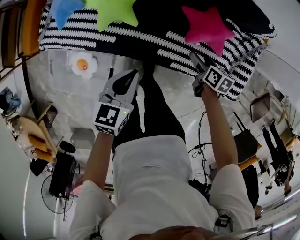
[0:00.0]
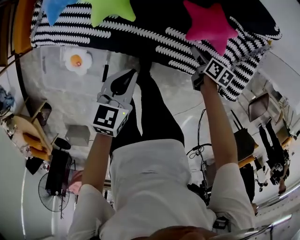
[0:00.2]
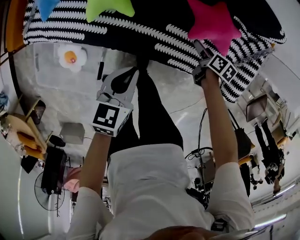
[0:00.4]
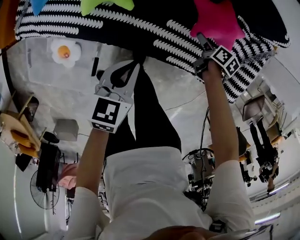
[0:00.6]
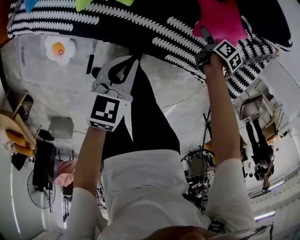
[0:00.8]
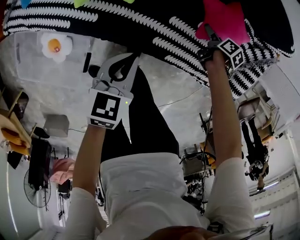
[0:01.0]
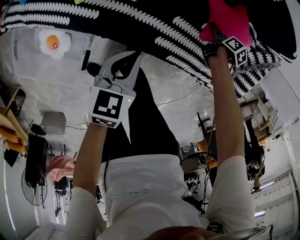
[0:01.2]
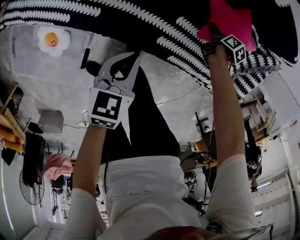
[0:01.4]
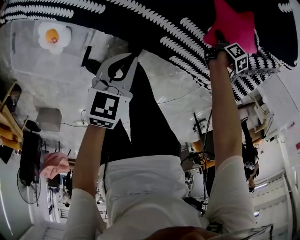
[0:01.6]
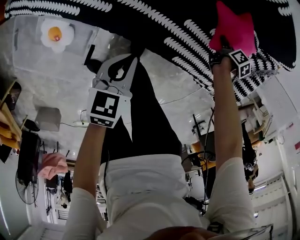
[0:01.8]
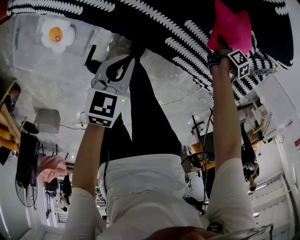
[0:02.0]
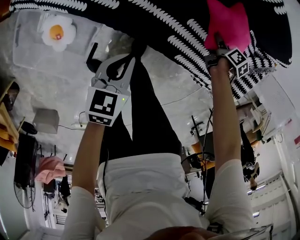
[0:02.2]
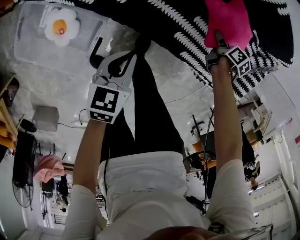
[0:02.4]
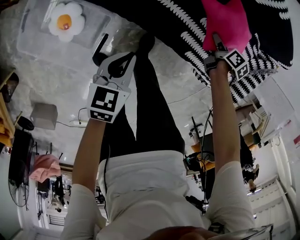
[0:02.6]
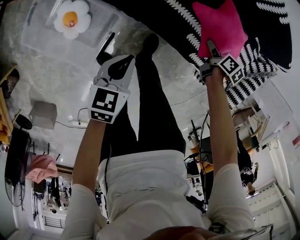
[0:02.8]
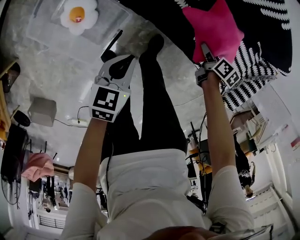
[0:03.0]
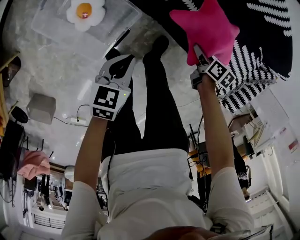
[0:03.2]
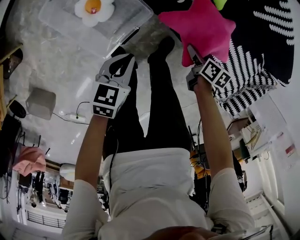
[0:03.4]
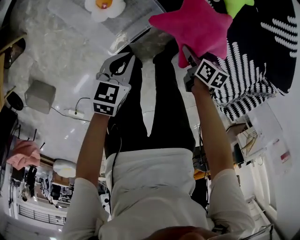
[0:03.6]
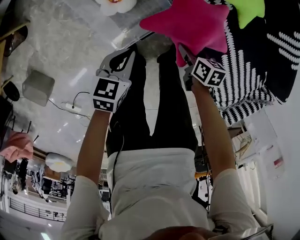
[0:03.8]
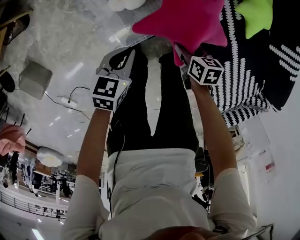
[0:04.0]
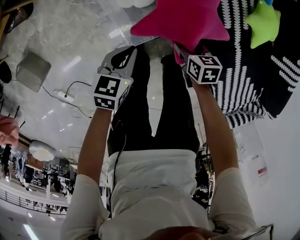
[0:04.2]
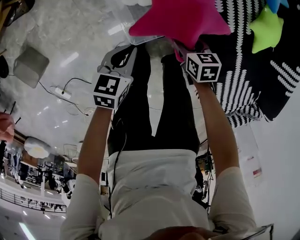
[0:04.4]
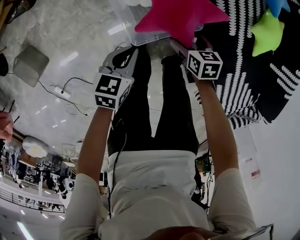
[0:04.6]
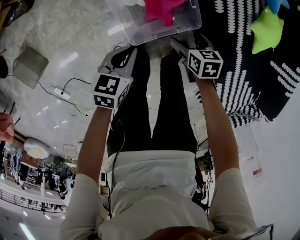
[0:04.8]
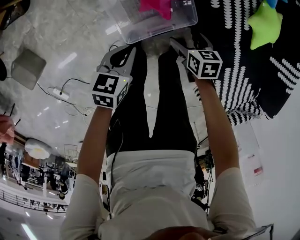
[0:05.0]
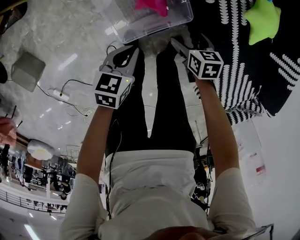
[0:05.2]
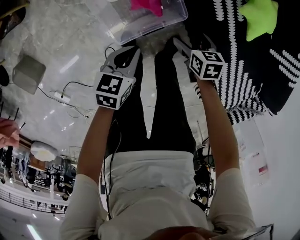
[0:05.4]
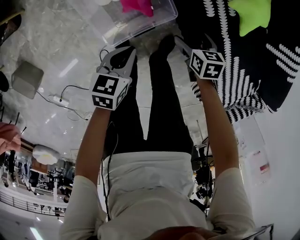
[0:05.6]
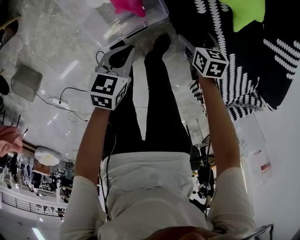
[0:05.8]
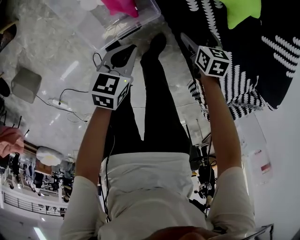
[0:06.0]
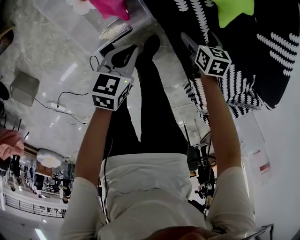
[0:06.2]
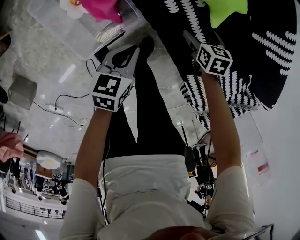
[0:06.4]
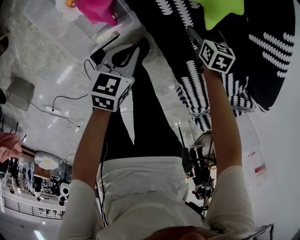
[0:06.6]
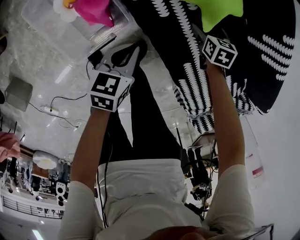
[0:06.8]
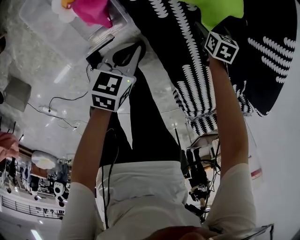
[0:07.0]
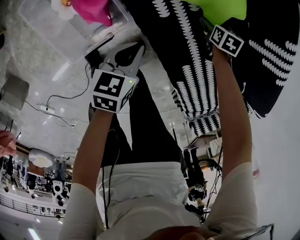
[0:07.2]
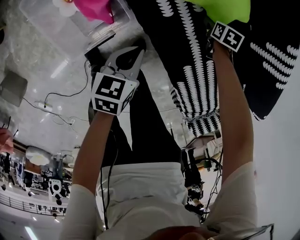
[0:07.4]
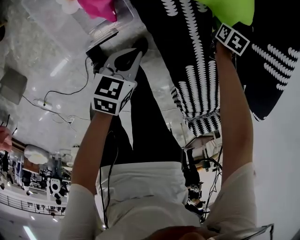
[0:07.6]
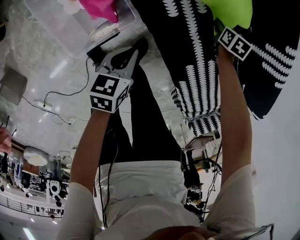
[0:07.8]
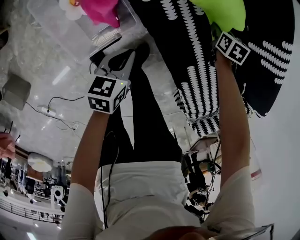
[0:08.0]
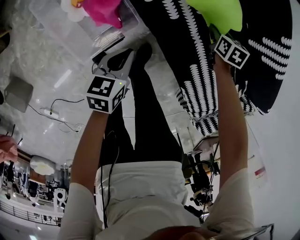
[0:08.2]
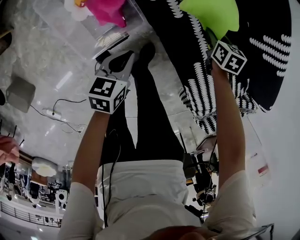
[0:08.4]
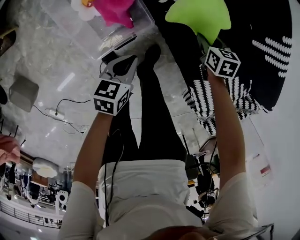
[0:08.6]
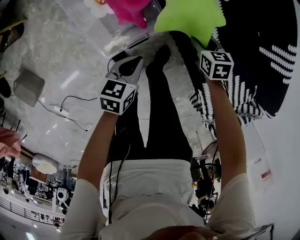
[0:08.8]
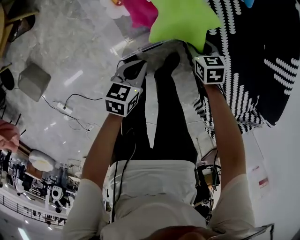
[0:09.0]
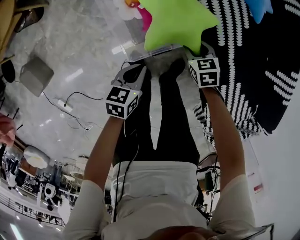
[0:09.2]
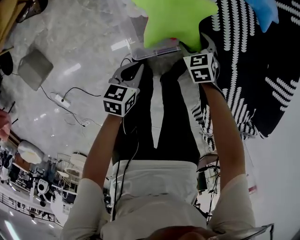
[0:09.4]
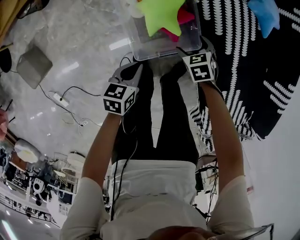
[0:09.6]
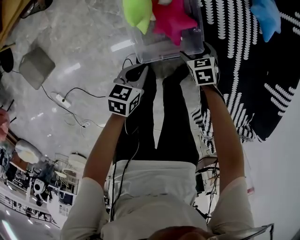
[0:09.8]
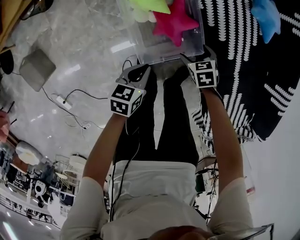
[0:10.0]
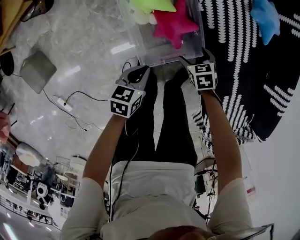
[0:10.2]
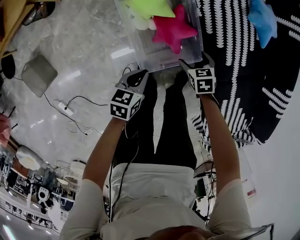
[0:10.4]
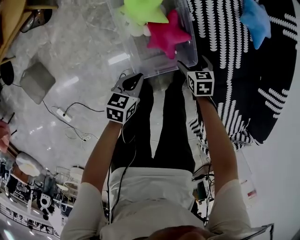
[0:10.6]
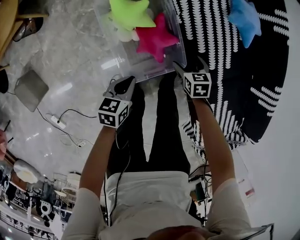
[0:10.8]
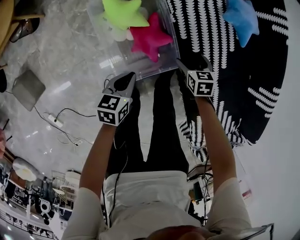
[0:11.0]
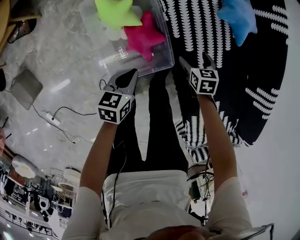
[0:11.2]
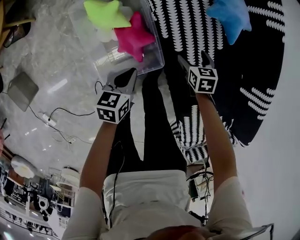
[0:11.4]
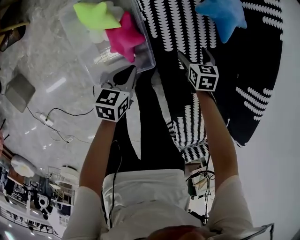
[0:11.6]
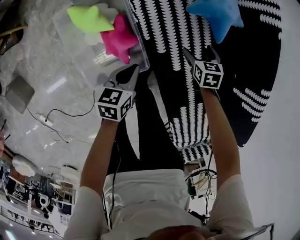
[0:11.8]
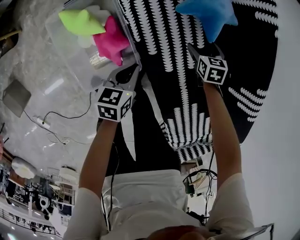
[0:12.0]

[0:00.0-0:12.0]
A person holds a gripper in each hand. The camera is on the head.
0:00.0 to 0:01.6: The two grippers go some 25 cm downward. The right gripper swivels some 30 degrees.
0:01.6 to 0:03.0: The right gripper changes place by some 30 cm, and swivels approximately 30 degrees, while the left gripper moves some 25 cm.
0:03.0 to 0:04.4: The left gripper ends up about 35 cm from where it was, and swivels approximately 30 degrees. The right gripper moves approximately 50 cm, and rolls counterclockwise, seen from behind, by some 70 degrees.
0:04.4 to 0:06.0: The two grippers go some 25 cm to the right. The right gripper opens up.
0:06.0 to 0:07.6: The left gripper moves some 15 cm. Meanwhile the right gripper moves approximately 25 cm, and closes up.
0:07.6 to 0:09.0: The left gripper changes place by roughly 25 cm. Meanwhile the right gripper ends up roughly 40 cm from where it was, and turns by about 30 degrees.
0:09.0 to 0:10.4: The grippers both shift to the left by approximately 15 cm. The right gripper opens its fingers.
0:10.4 to 0:12.0: The two grippers go some 40 cm to the right and forward.

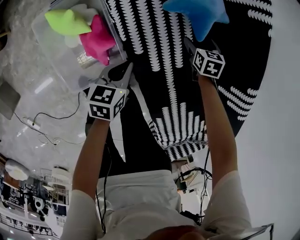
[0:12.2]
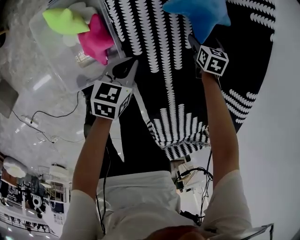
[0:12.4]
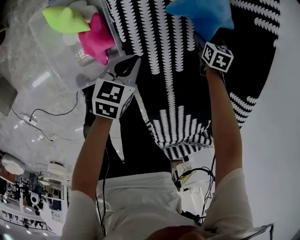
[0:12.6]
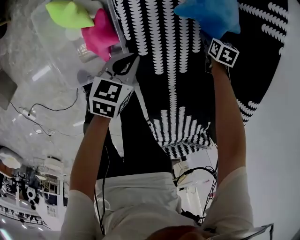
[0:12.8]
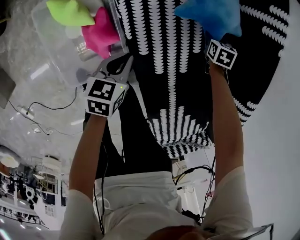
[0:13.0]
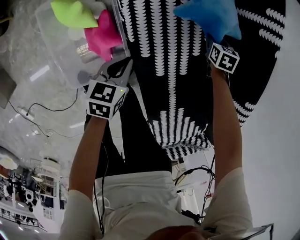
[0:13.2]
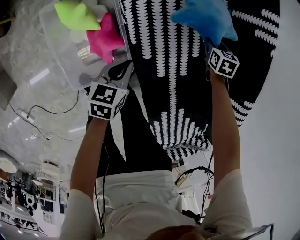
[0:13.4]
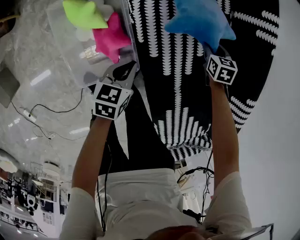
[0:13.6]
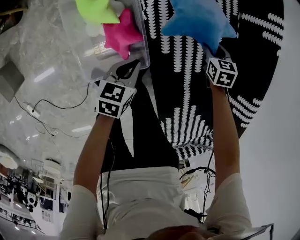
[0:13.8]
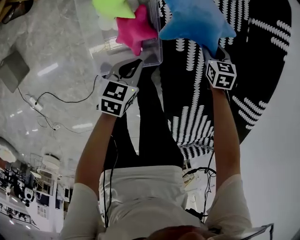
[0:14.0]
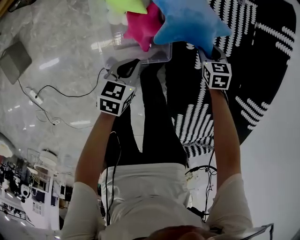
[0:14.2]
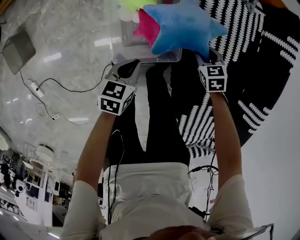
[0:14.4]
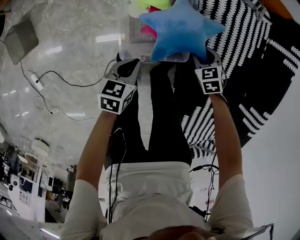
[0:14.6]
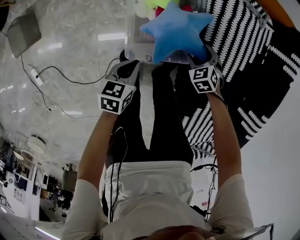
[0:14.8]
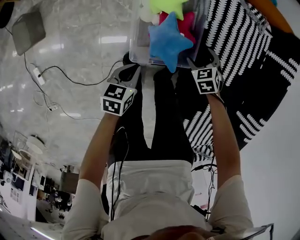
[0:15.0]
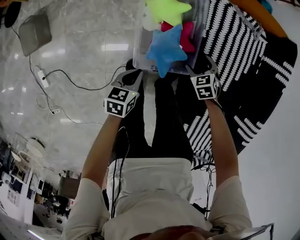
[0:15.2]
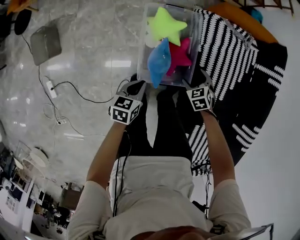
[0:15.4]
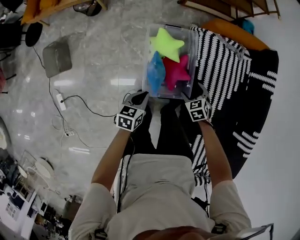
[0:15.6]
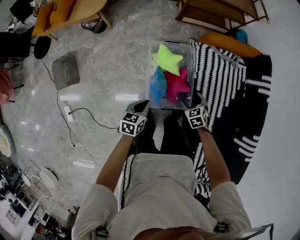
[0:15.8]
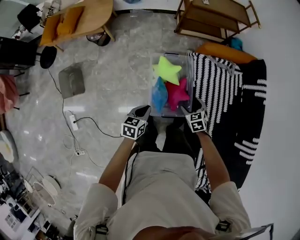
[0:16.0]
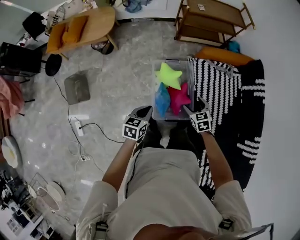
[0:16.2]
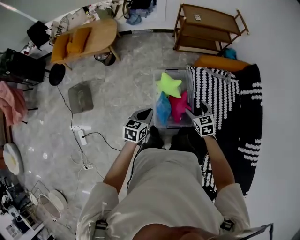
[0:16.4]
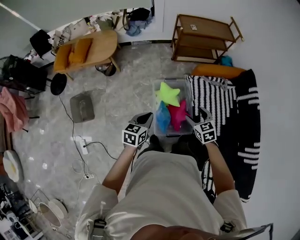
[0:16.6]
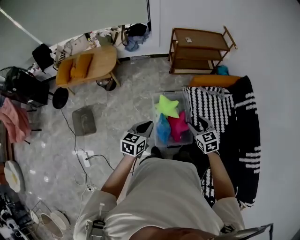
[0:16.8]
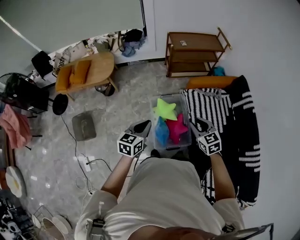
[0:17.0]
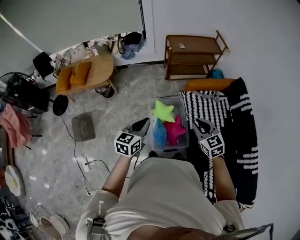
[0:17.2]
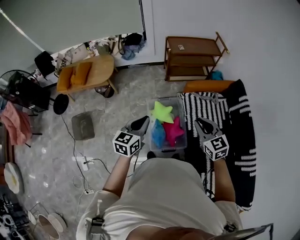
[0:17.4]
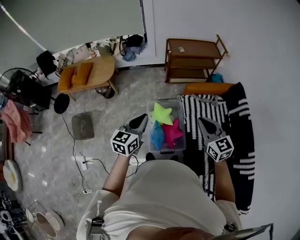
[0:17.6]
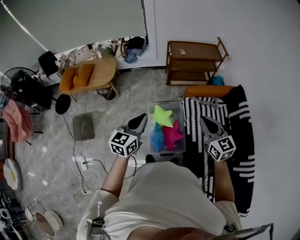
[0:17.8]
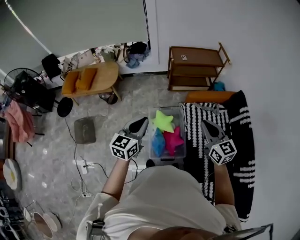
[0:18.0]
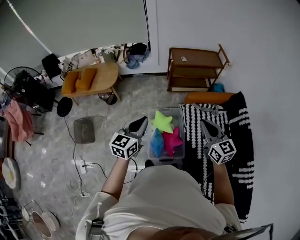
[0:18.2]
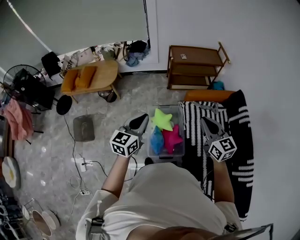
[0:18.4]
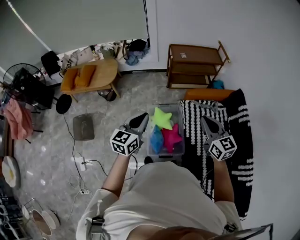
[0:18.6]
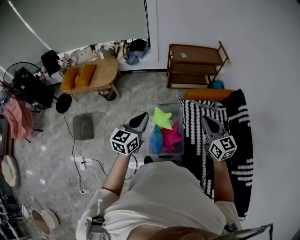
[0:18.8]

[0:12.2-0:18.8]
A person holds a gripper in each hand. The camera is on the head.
0:12.2 to 0:13.8: The left gripper shifts roughly 10 cm to the left and backward. Meanwhile the right gripper is displaced to the left by about 10 cm, and closes up.
0:13.8 to 0:15.4: The two grippers go some 40 cm to the left and backward. The right gripper changes its angle by roughly 40 degrees, and opens up.
0:15.4 to 0:17.2: Both grippers move upward, about 50 cm. The left gripper turns by some 30 degrees. Meanwhile the right gripper angles its fingers upward, by about 40 degrees, and closes.
0:17.2 to 0:18.8: The left gripper is displaced upward by some 10 cm, while the right gripper heads upward and to the right, covering roughly 15 cm, and changes its angle by roughly 20 degrees.

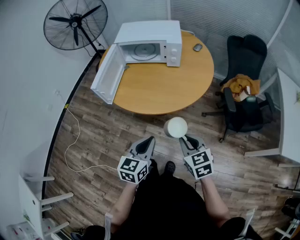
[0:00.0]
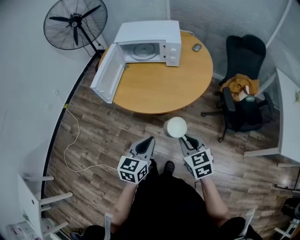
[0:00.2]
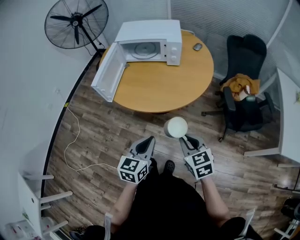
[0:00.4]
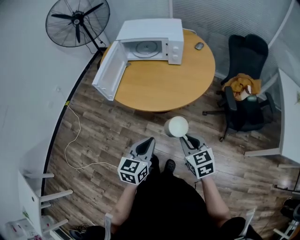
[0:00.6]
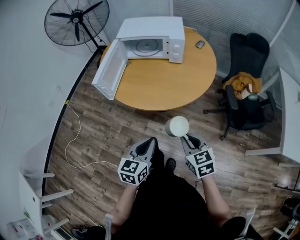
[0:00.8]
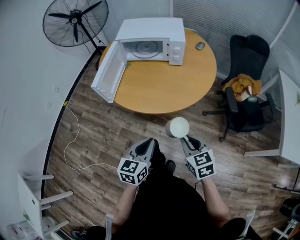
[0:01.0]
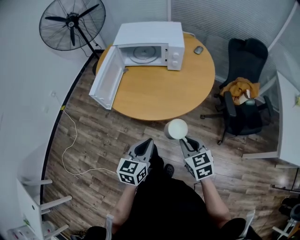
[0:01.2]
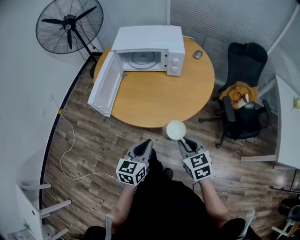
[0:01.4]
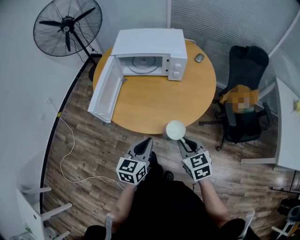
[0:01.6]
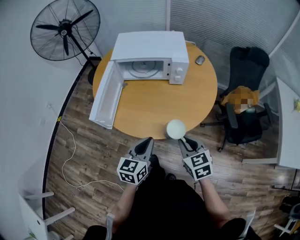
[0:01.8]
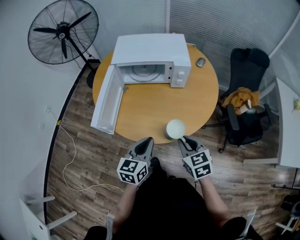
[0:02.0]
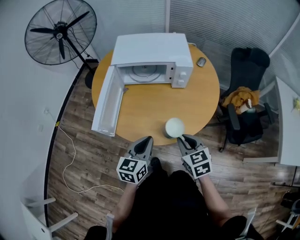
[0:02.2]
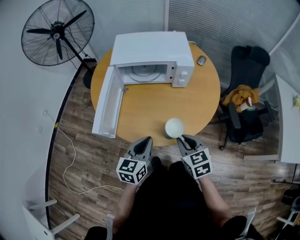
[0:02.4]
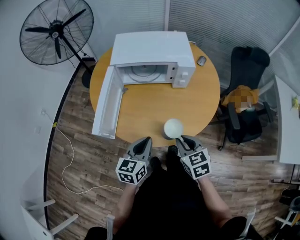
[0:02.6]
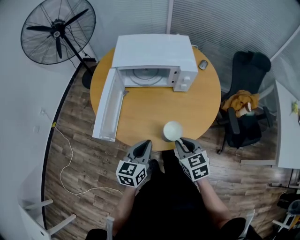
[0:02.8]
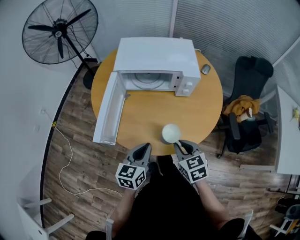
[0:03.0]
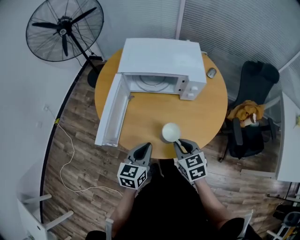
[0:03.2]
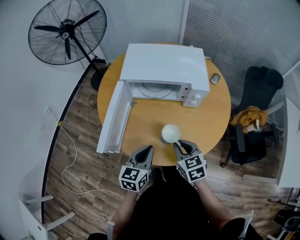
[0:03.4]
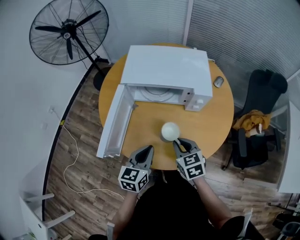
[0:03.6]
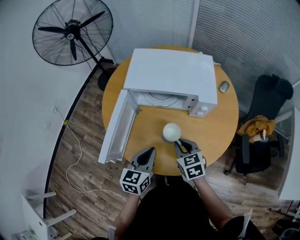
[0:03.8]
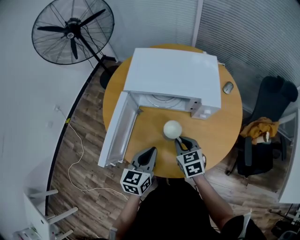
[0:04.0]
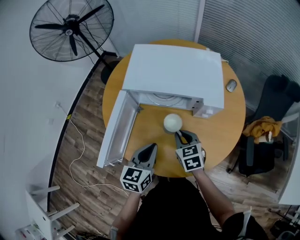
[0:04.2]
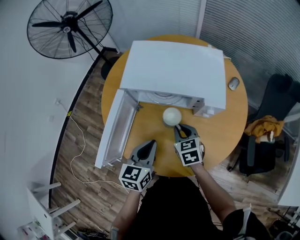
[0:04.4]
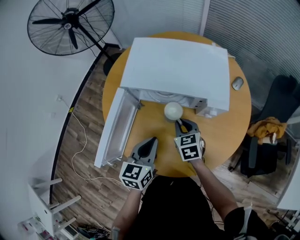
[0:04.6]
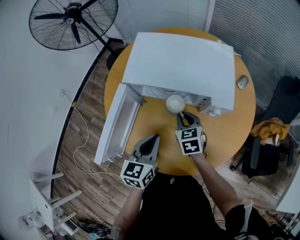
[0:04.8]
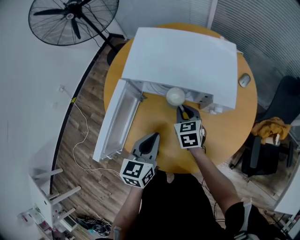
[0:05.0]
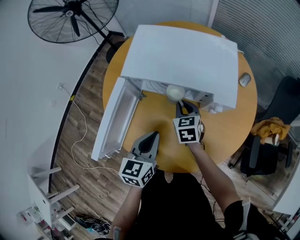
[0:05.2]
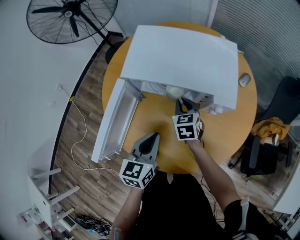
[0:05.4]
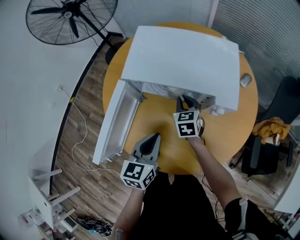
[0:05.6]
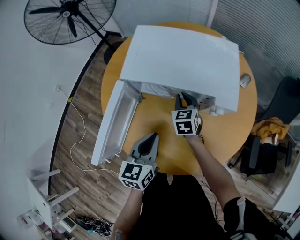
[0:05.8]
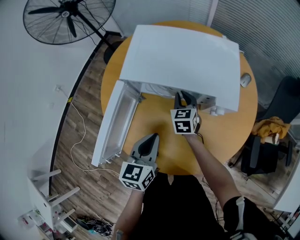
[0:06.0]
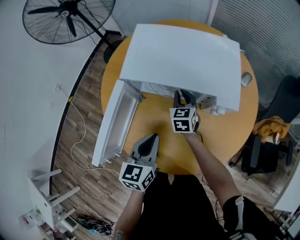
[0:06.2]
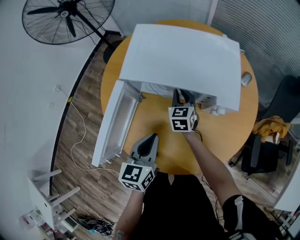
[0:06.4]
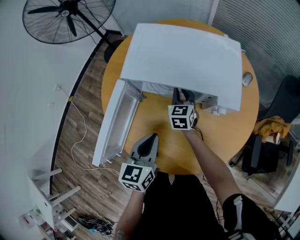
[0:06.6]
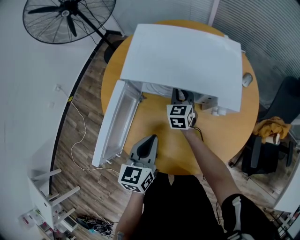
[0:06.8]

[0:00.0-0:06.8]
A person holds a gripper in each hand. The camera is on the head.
0:00.0 to 0:01.4: The grippers both shift forward by about 10 cm.
0:01.4 to 0:02.8: The grippers both shift forward and to the left by about 15 cm.
0:02.8 to 0:04.0: The two grippers go some 15 cm forward.
0:04.0 to 0:05.4: The right gripper travels forward by approximately 15 cm. Meanwhile the left gripper moves forward, some 5 cm.
0:05.4 to 0:06.8: The right gripper moves forward, roughly 5 cm.
